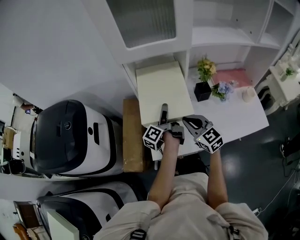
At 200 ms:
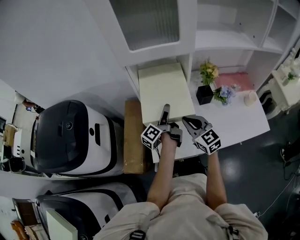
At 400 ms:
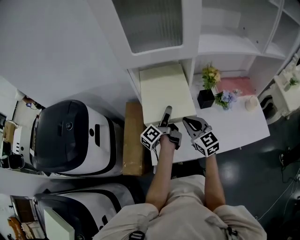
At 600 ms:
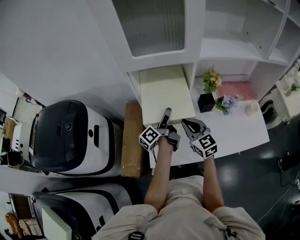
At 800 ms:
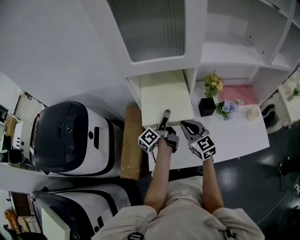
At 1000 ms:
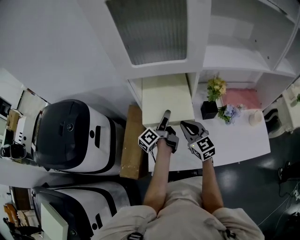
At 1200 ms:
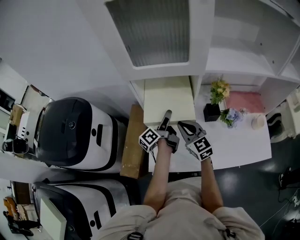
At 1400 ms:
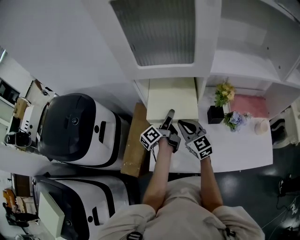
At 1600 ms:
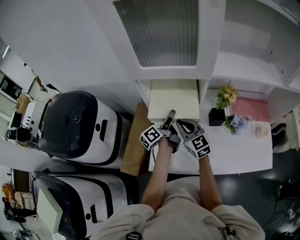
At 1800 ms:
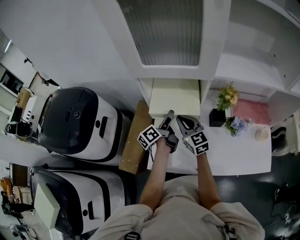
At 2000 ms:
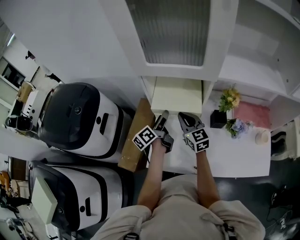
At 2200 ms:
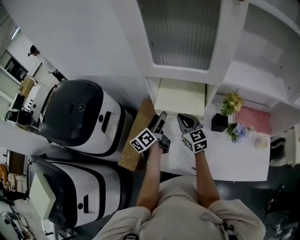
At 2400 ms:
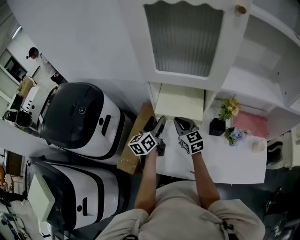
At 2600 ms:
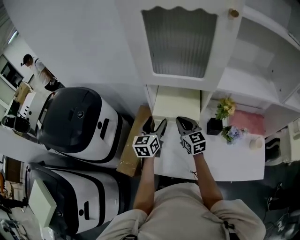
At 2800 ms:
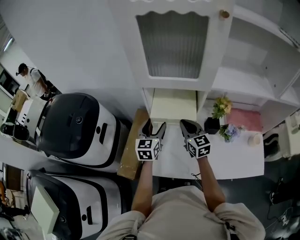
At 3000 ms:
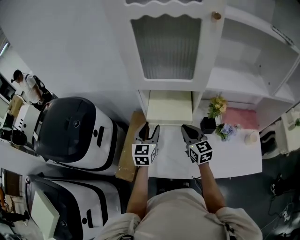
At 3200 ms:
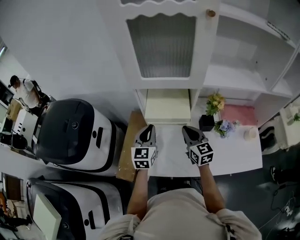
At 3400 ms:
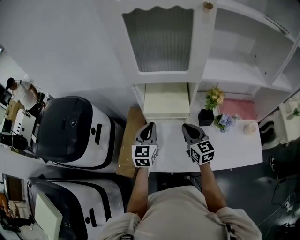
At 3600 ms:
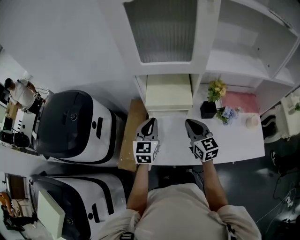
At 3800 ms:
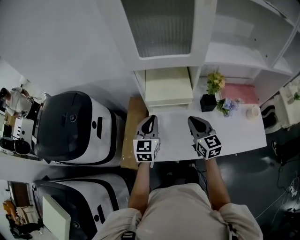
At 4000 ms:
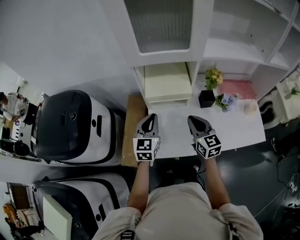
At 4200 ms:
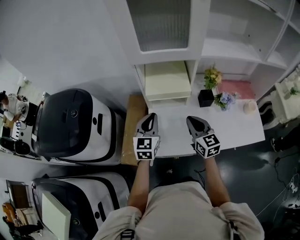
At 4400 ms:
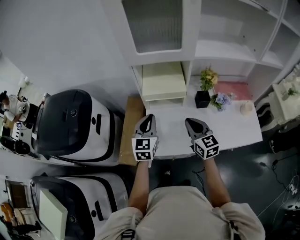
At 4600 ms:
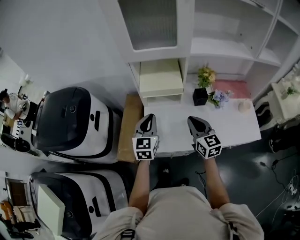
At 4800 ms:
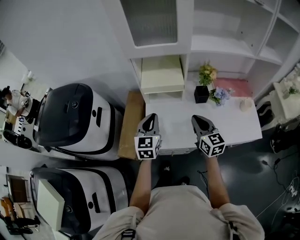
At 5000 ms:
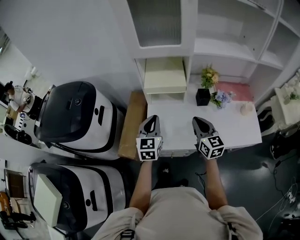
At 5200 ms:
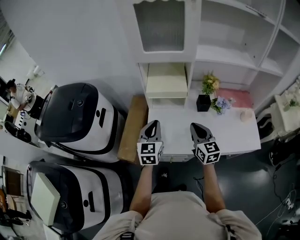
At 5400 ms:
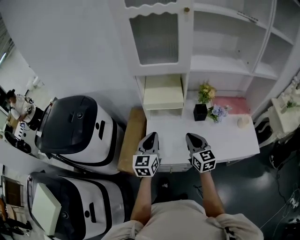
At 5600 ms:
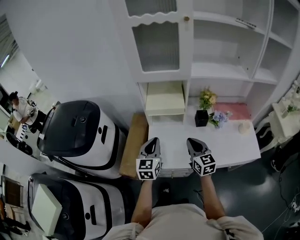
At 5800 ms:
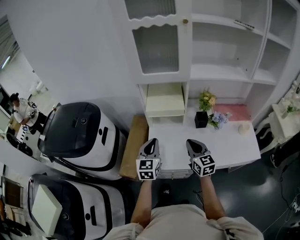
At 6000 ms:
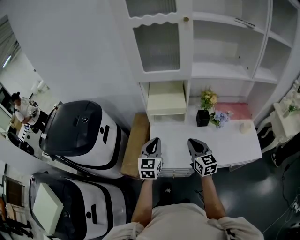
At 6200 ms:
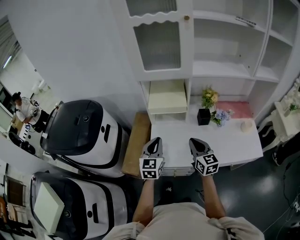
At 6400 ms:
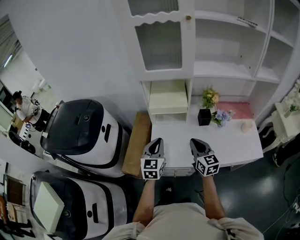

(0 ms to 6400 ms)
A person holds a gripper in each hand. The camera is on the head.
0 ms - 1600 ms: The right gripper goes some 10 cm forward. The left gripper heads forward, covering roughly 10 cm.
1600 ms - 3200 ms: The right gripper changes place by roughly 10 cm, while the left gripper is displaced upward, to the left and backward by some 15 cm, rolls clockwise, seen from behind, by approximately 80 degrees, and closes its fingers.
3200 ms - 4800 ms: Both grippers move backward, roughly 15 cm.
4800 ms - 6400 ms: The grippers move only a little.

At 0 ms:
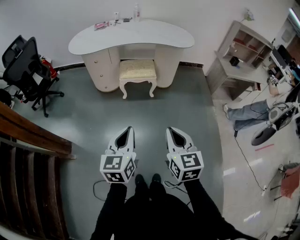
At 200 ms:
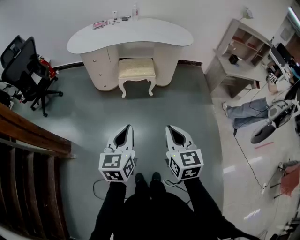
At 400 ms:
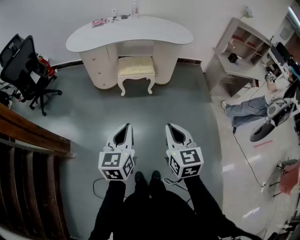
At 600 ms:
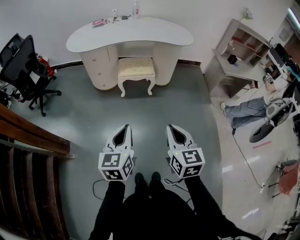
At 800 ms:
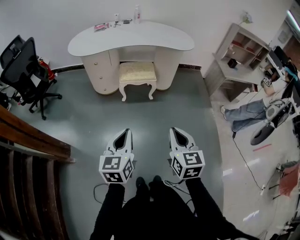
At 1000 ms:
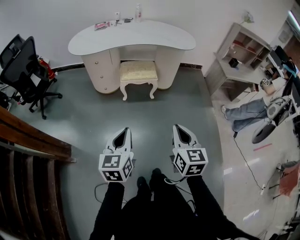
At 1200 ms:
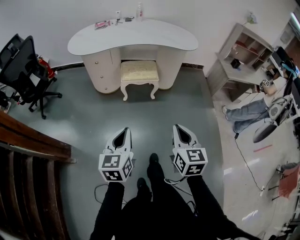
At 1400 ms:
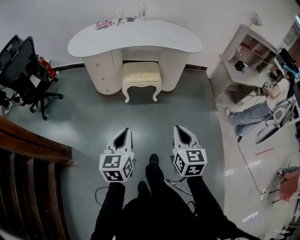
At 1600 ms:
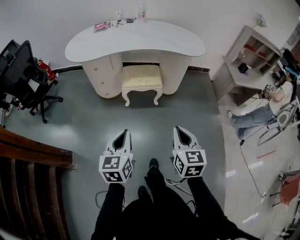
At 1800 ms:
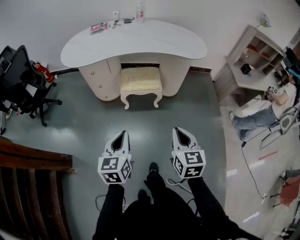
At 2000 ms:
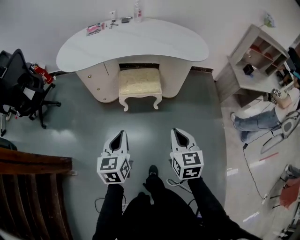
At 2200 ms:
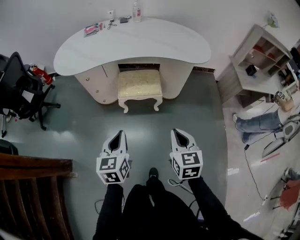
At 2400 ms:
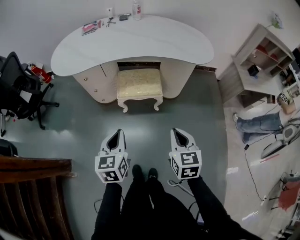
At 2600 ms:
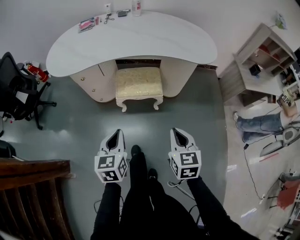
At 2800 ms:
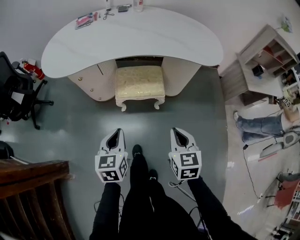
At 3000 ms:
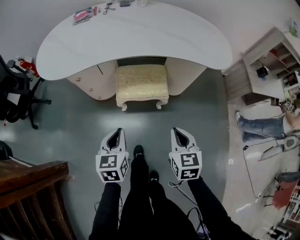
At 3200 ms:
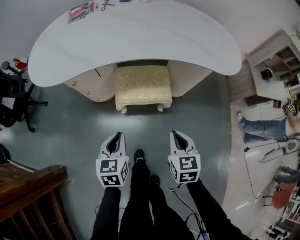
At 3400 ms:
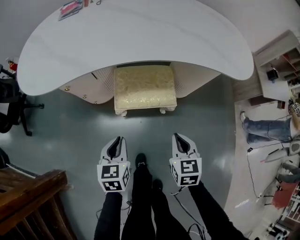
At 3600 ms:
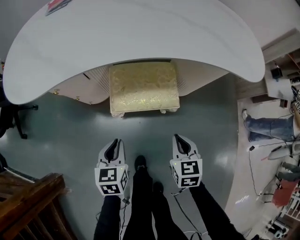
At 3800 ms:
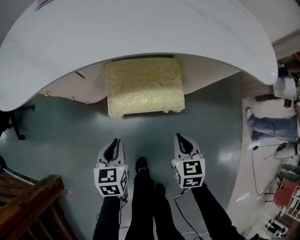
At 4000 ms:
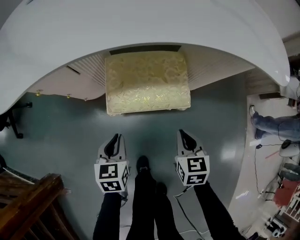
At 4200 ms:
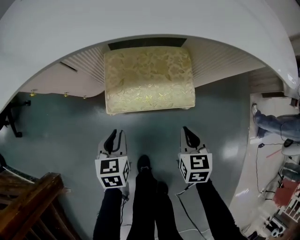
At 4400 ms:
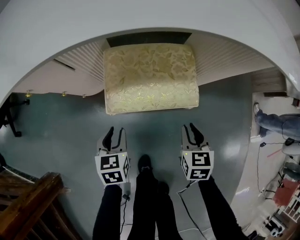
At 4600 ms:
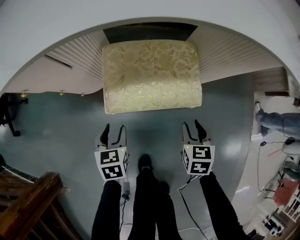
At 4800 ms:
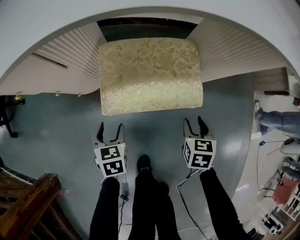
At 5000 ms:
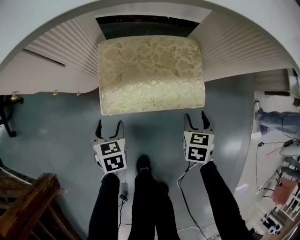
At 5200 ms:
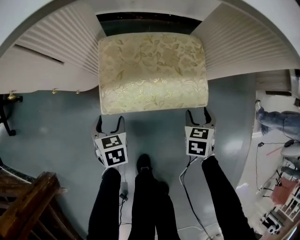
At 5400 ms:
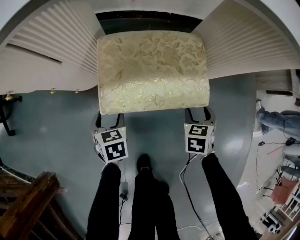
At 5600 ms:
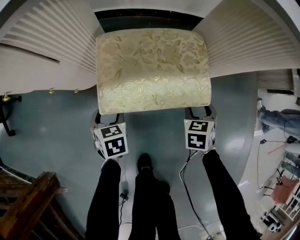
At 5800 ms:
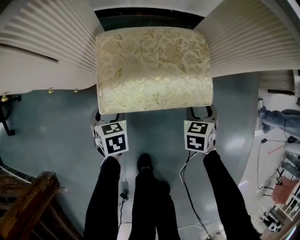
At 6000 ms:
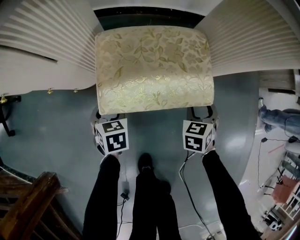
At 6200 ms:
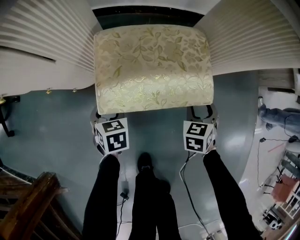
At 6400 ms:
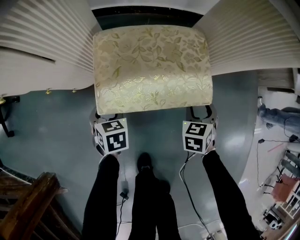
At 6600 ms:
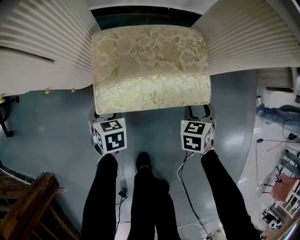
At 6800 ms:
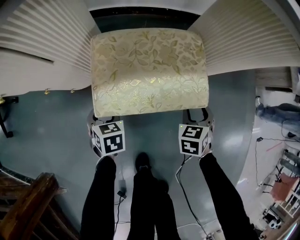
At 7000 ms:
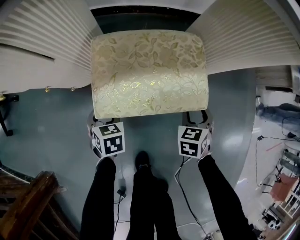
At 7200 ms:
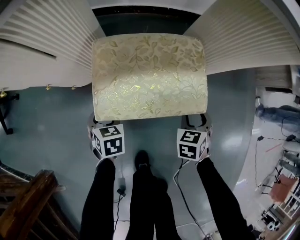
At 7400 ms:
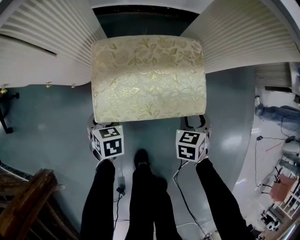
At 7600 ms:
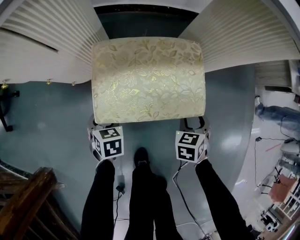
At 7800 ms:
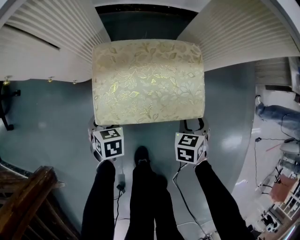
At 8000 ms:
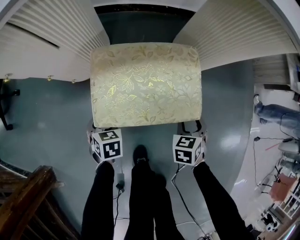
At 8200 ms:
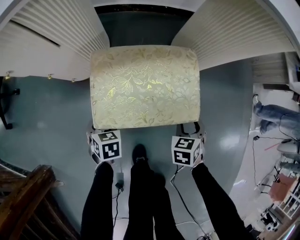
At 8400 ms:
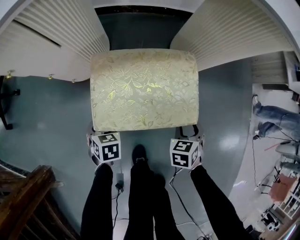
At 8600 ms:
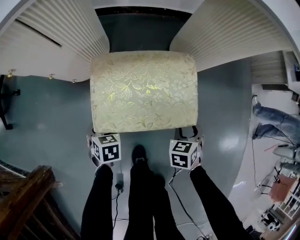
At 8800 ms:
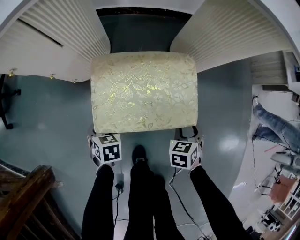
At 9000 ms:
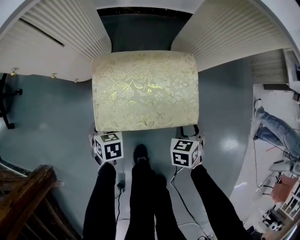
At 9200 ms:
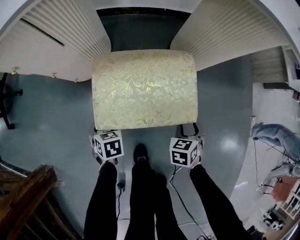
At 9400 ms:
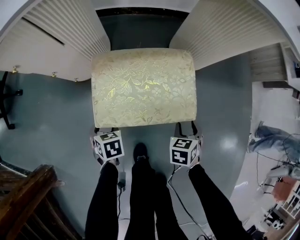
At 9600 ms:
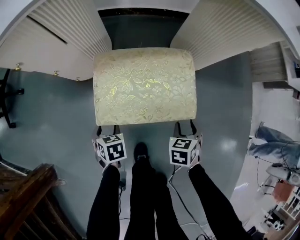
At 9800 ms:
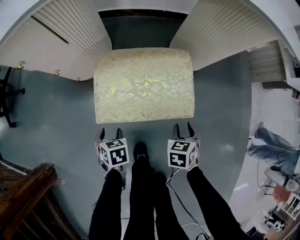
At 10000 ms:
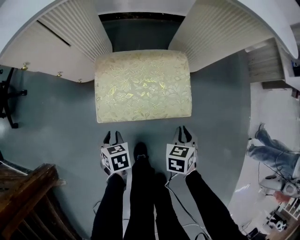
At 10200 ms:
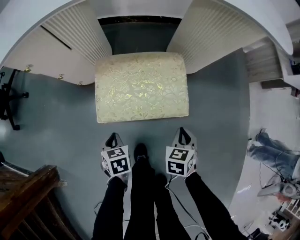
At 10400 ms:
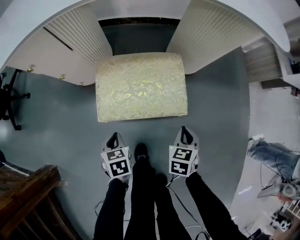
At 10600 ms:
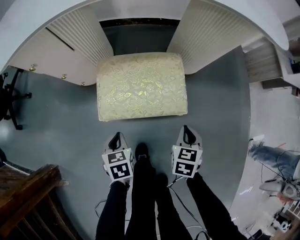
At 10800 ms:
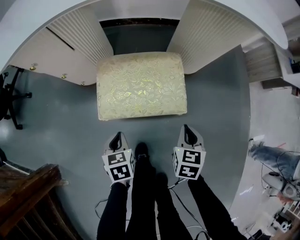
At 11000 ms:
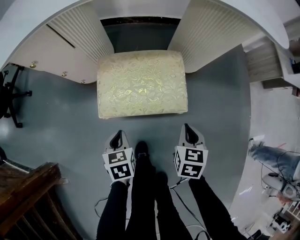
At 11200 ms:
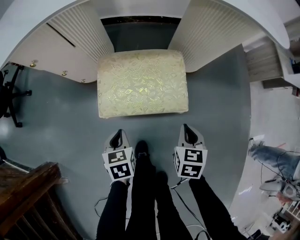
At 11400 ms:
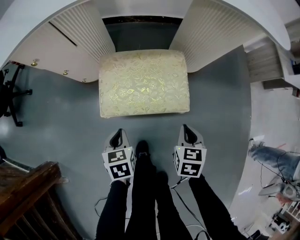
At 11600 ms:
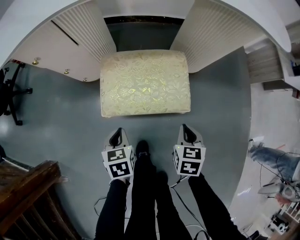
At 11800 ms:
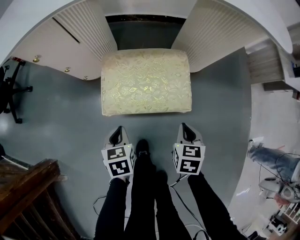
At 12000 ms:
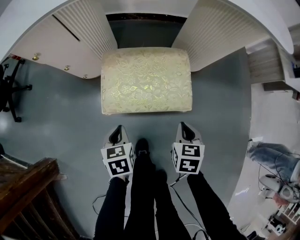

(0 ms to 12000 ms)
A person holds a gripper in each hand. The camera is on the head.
0 ms - 1600 ms: The two grippers go approximately 15 cm forward.
1600 ms - 3000 ms: The two grippers go about 30 cm forward and downward.
3000 ms - 4400 ms: The grippers both shift downward and forward by some 35 cm. The left gripper opens its fingers.
4400 ms - 6000 ms: Both grippers travel together downward and forward, roughly 15 cm. The right gripper turns by approximately 20 degrees, and opens up, while the left gripper opens up.
6000 ms - 9000 ms: There are only small adjustments of the grippers.
9000 ms - 10400 ms: The right gripper travels upward by approximately 5 cm, and closes up. The left gripper heads upward, backward and to the right, covering about 10 cm, and closes up.
10400 ms - 12000 ms: The grippers stay close to where they were, moving slightly.

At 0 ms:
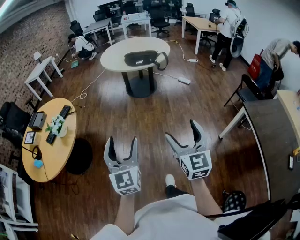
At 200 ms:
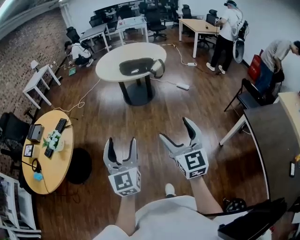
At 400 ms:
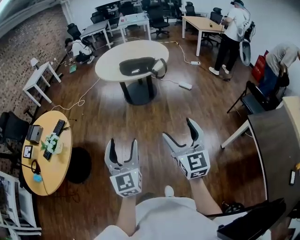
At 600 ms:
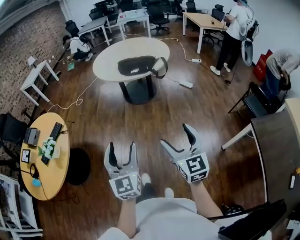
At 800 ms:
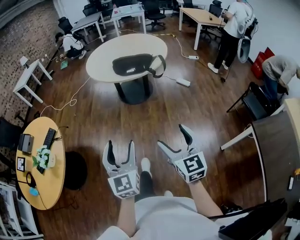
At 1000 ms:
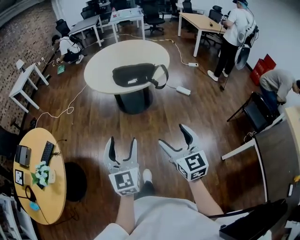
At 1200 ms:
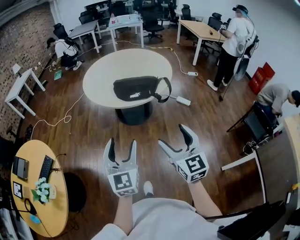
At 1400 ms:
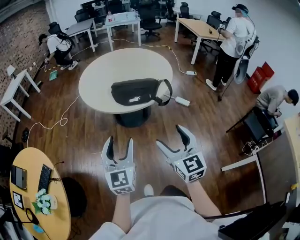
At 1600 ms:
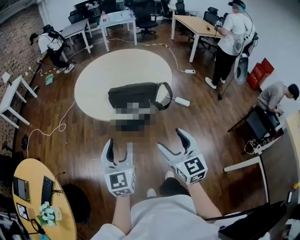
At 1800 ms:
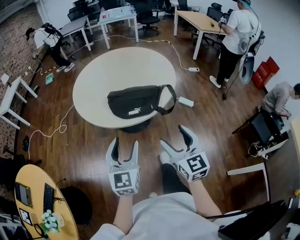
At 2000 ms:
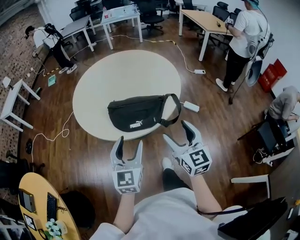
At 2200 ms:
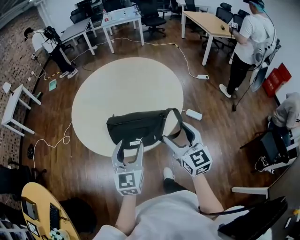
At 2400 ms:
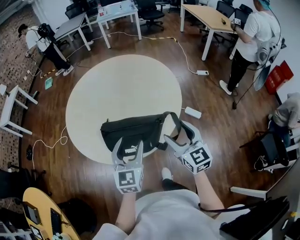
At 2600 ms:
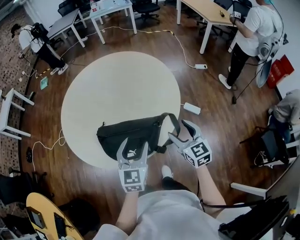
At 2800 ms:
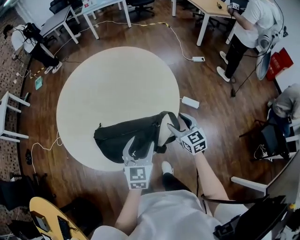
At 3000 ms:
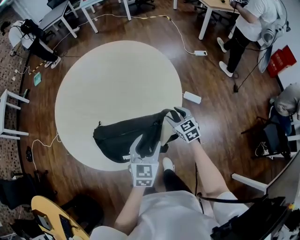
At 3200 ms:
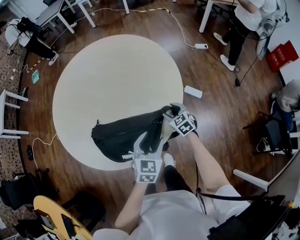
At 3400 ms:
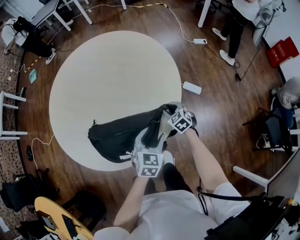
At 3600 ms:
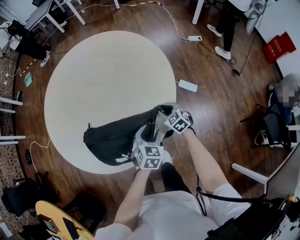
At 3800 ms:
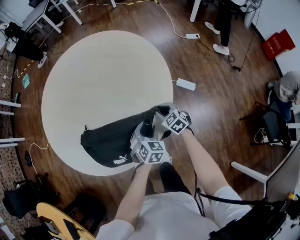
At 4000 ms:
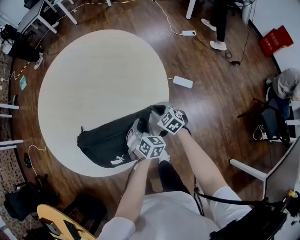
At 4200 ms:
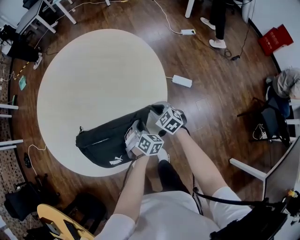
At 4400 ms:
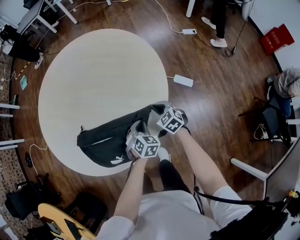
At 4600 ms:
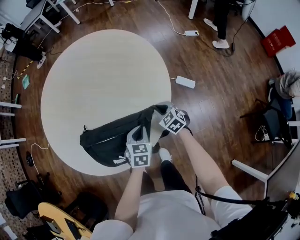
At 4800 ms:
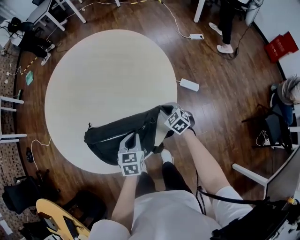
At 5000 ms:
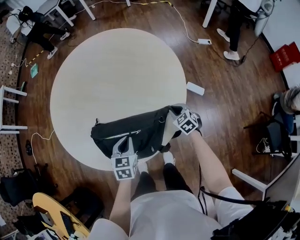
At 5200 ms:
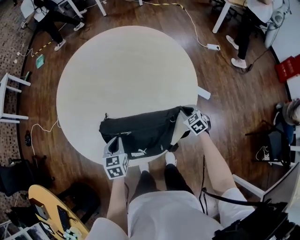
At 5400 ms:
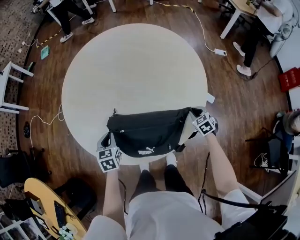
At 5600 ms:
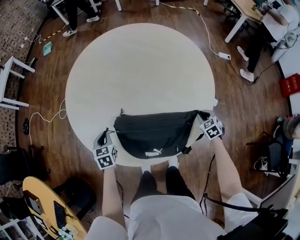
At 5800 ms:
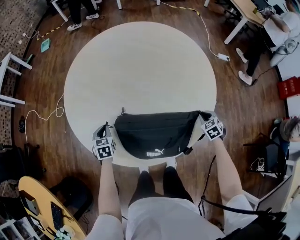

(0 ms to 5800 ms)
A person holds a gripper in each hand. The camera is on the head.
0 ms - 1400 ms: The two grippers travel together, forward, about 60 cm.
1400 ms - 2800 ms: The two grippers travel together, forward and to the right, approximately 50 cm. The left gripper changes its angle by approximately 30 degrees, while the right gripper travels downward by approximately 20 cm.
2800 ms - 4400 ms: The right gripper heads downward and forward, covering about 20 cm, turns by approximately 30 degrees, and closes its fingers; the left gripper heads downward, covering some 20 cm, rotates some 40 degrees, and closes.
4400 ms - 5800 ms: The right gripper swivels approximately 20 degrees. Meanwhile the left gripper heads to the left, covering roughly 40 cm, and rotates approximately 40 degrees.
